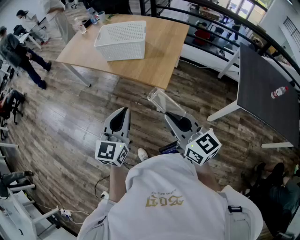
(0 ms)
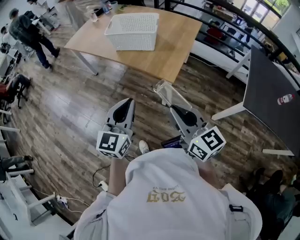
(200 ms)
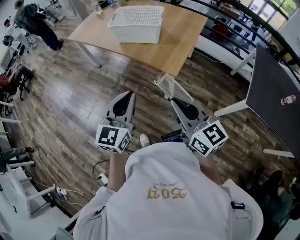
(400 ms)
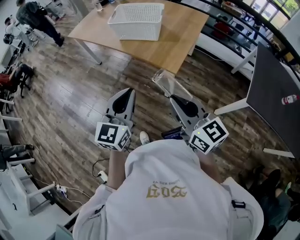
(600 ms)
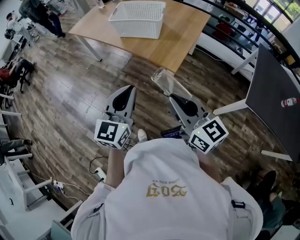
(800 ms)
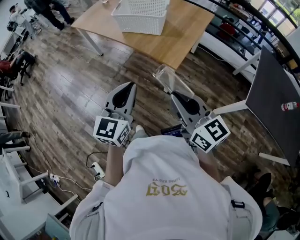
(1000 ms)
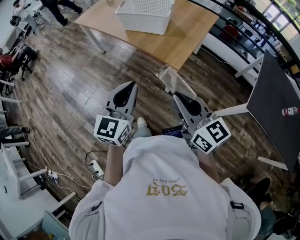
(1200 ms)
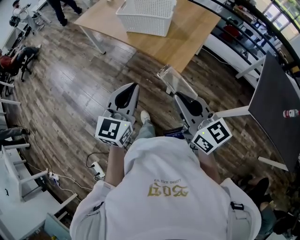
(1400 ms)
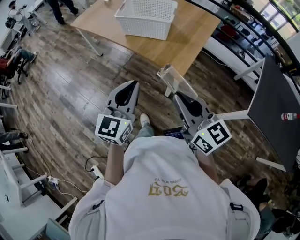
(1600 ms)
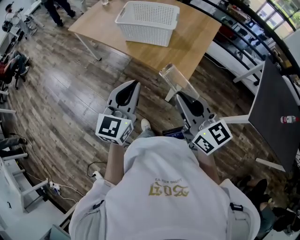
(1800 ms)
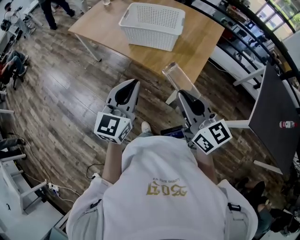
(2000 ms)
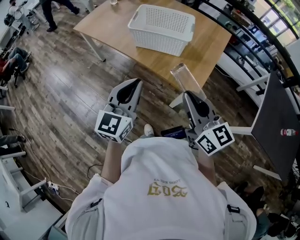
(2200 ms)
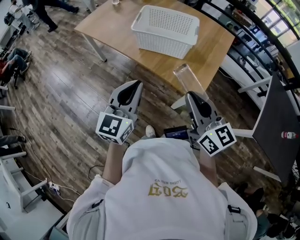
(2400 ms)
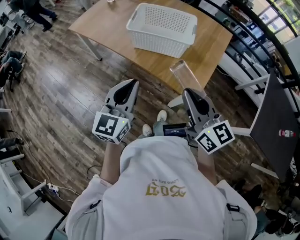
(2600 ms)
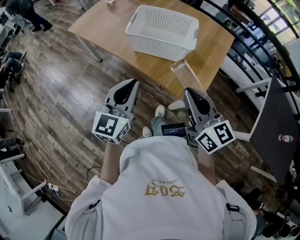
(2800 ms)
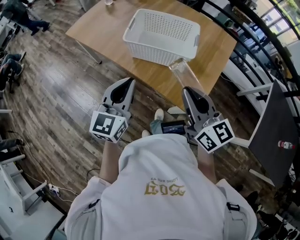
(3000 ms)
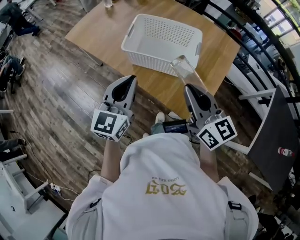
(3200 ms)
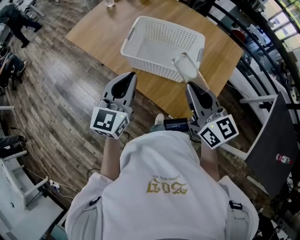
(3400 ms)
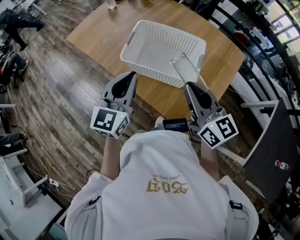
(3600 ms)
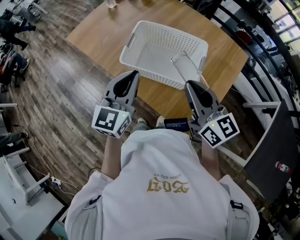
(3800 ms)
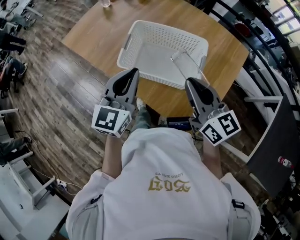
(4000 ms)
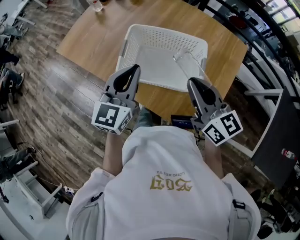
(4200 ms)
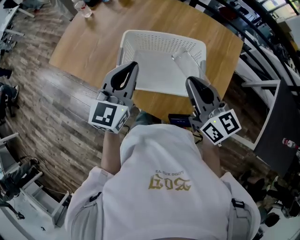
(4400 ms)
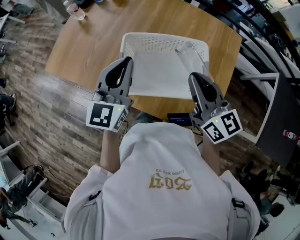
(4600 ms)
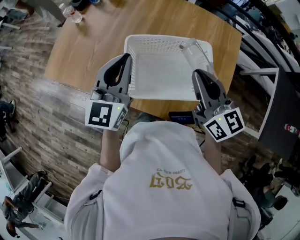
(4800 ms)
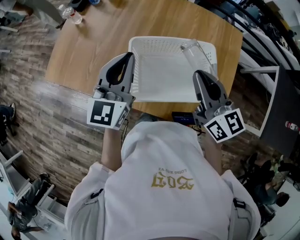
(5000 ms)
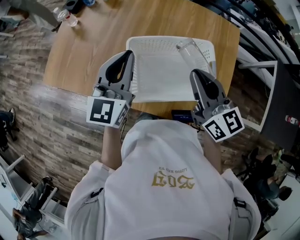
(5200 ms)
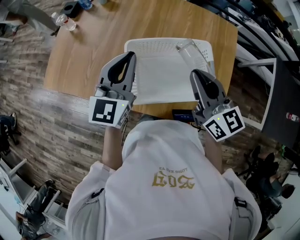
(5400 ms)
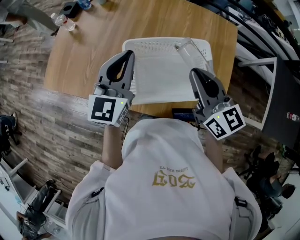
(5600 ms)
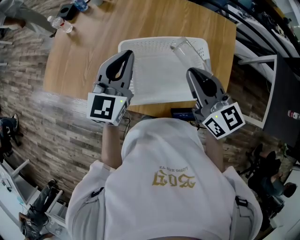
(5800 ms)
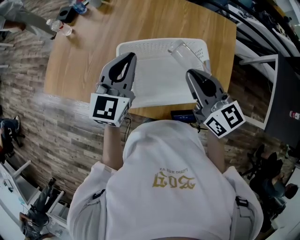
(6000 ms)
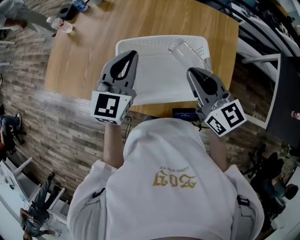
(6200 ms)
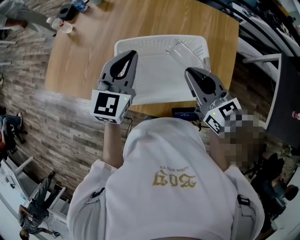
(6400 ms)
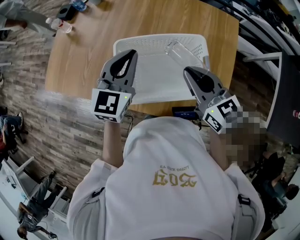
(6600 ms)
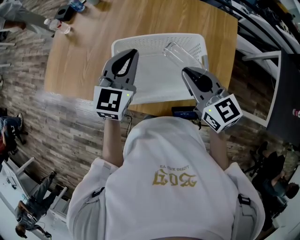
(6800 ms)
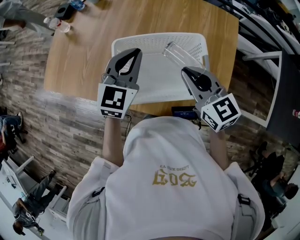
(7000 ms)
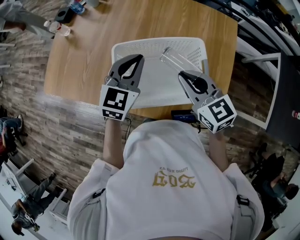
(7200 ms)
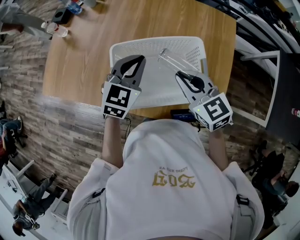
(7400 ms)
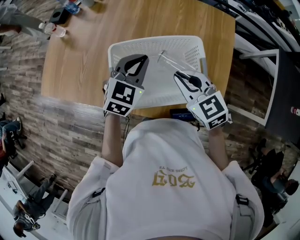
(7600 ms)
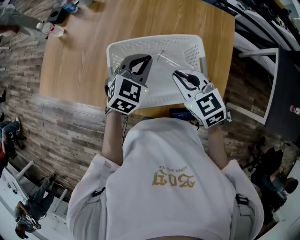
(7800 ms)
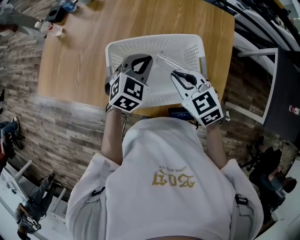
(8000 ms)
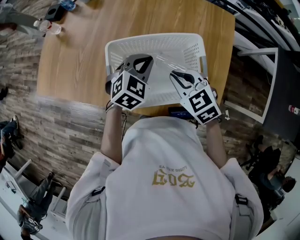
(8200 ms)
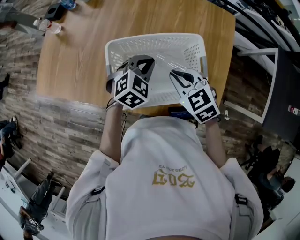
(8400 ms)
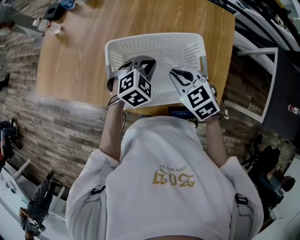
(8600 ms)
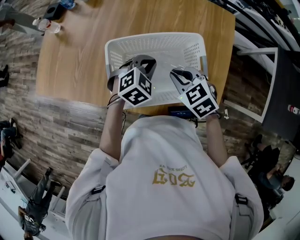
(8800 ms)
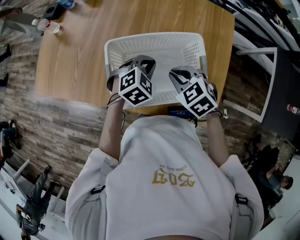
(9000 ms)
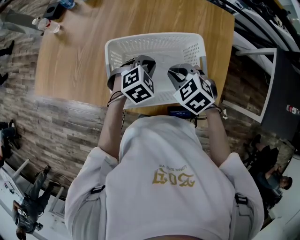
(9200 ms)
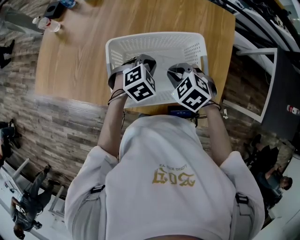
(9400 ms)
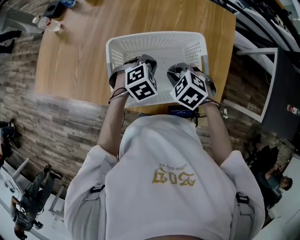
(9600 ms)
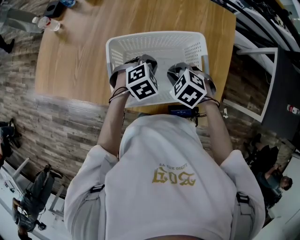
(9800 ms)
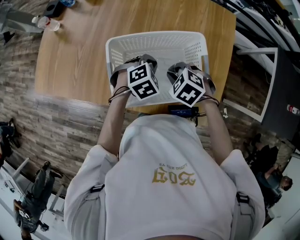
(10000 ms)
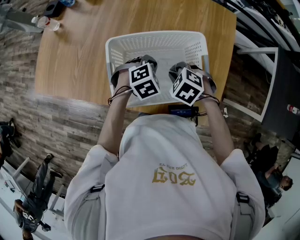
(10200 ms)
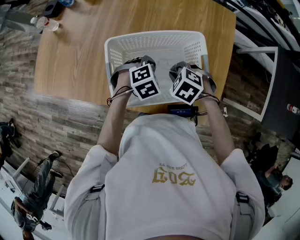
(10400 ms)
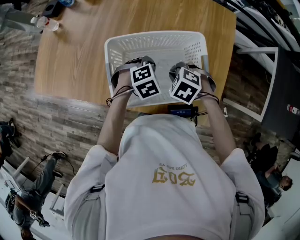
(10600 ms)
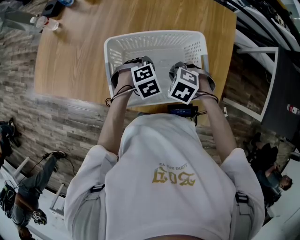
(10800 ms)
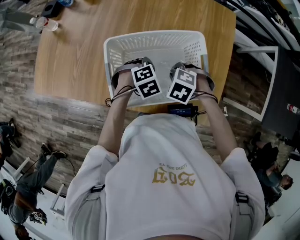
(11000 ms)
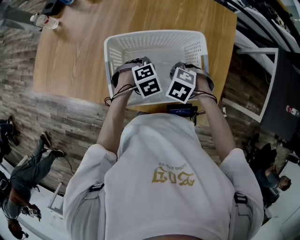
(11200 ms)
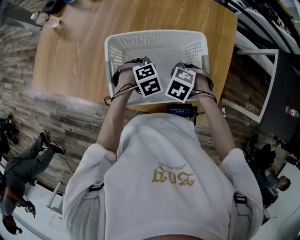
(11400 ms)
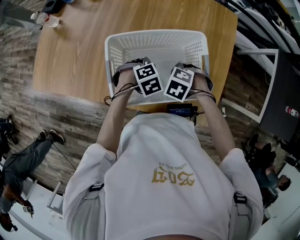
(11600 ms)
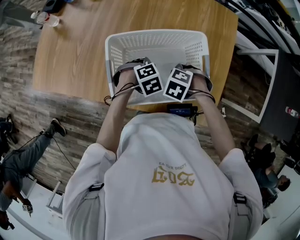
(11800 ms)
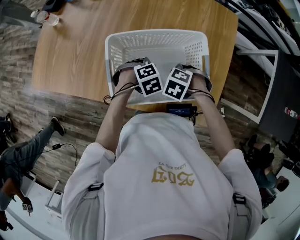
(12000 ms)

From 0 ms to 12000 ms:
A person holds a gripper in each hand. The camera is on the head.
From 0 ms to 1600 ms: Both grippers move forward, some 5 cm.
From 1600 ms to 3000 ms: Both grippers travel together forward, roughly 25 cm.
From 3000 ms to 4400 ms: The grippers both shift forward by roughly 25 cm.
From 4400 ms to 6000 ms: The left gripper travels forward by some 10 cm. The right gripper moves about 5 cm.
From 6000 ms to 7600 ms: The left gripper shifts roughly 10 cm downward and to the right, and changes its angle by some 20 degrees, while the right gripper shifts roughly 10 cm downward, and turns by approximately 30 degrees.
From 7600 ms to 9000 ms: The grippers both shift downward by roughly 10 cm. The right gripper swivels approximately 20 degrees. Meanwhile the left gripper rotates approximately 30 degrees.
From 9000 ms to 10400 ms: The grippers both shift downward by approximately 5 cm. The right gripper changes its angle by approximately 20 degrees.
From 10400 ms to 12000 ms: The right gripper ends up approximately 5 cm from where it was.

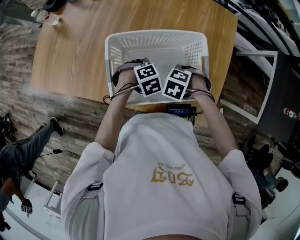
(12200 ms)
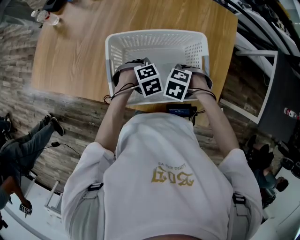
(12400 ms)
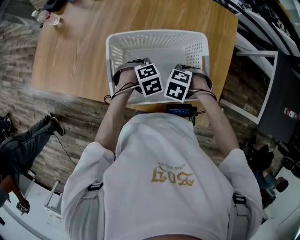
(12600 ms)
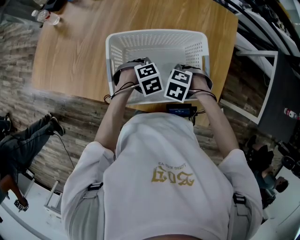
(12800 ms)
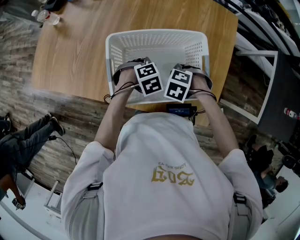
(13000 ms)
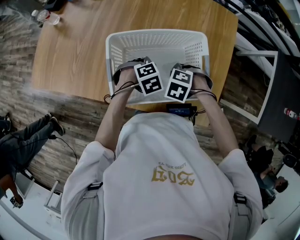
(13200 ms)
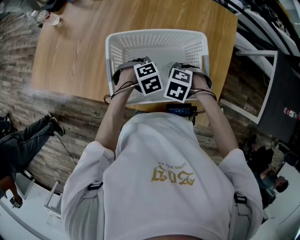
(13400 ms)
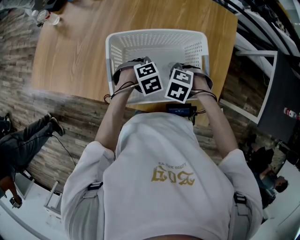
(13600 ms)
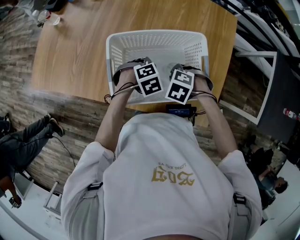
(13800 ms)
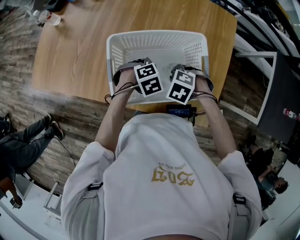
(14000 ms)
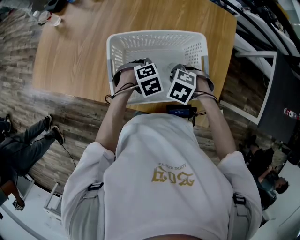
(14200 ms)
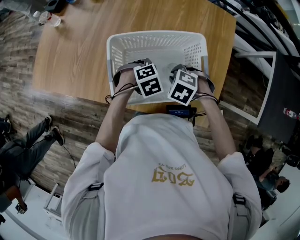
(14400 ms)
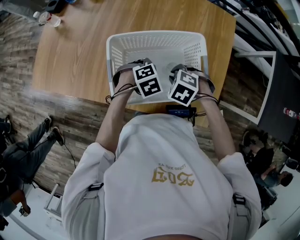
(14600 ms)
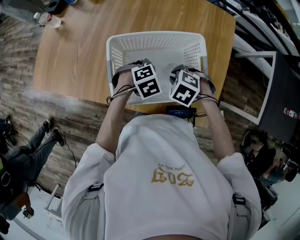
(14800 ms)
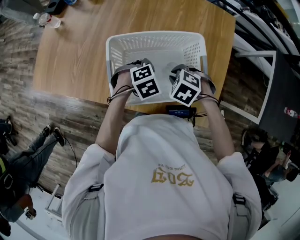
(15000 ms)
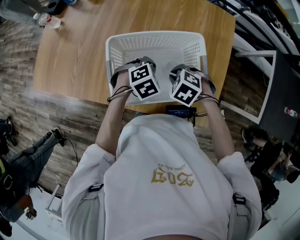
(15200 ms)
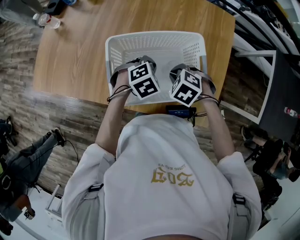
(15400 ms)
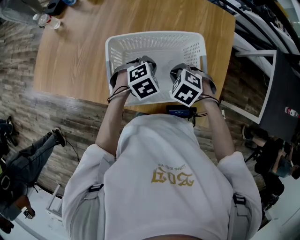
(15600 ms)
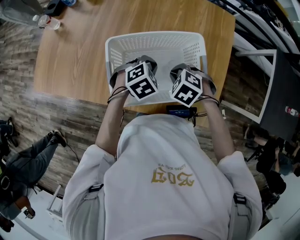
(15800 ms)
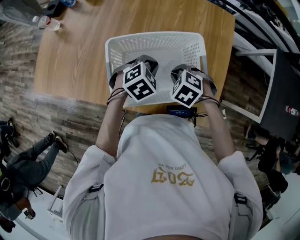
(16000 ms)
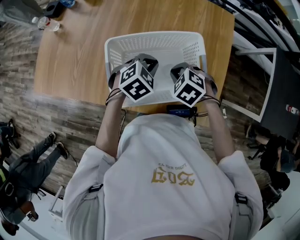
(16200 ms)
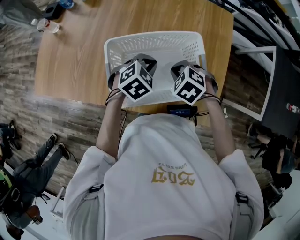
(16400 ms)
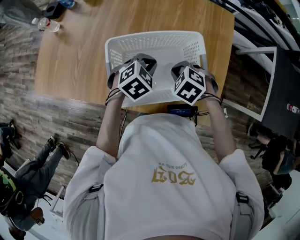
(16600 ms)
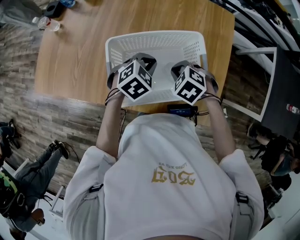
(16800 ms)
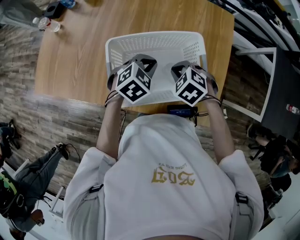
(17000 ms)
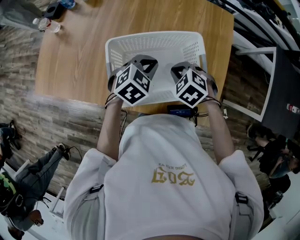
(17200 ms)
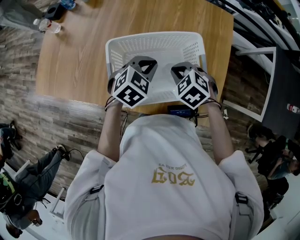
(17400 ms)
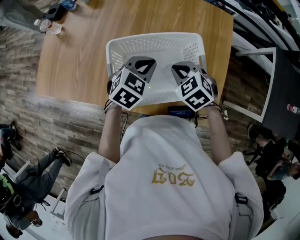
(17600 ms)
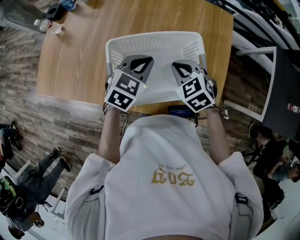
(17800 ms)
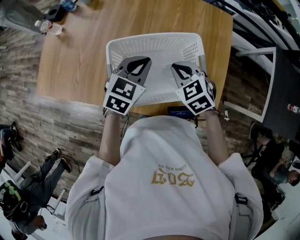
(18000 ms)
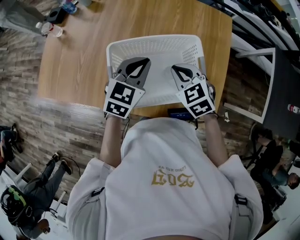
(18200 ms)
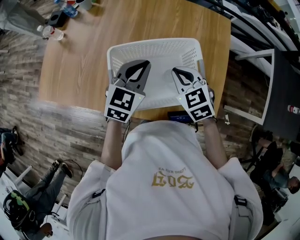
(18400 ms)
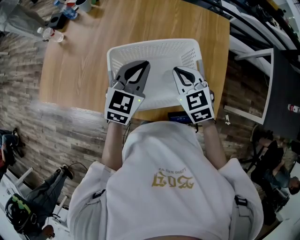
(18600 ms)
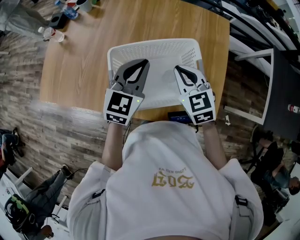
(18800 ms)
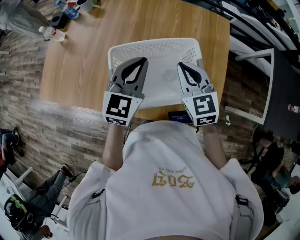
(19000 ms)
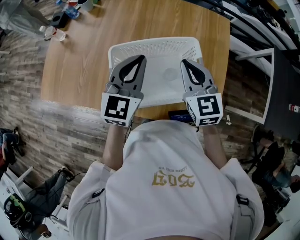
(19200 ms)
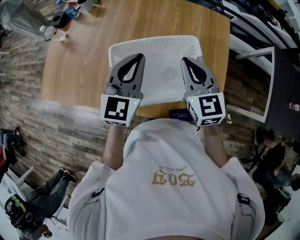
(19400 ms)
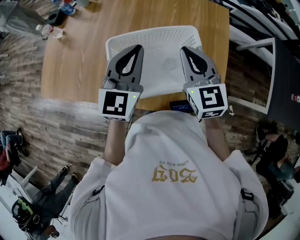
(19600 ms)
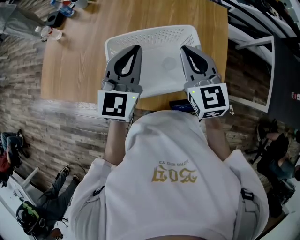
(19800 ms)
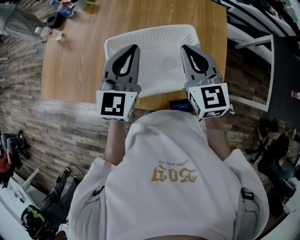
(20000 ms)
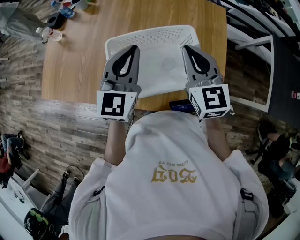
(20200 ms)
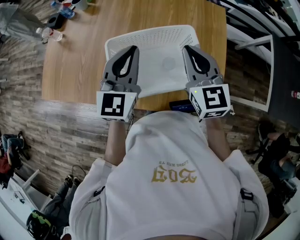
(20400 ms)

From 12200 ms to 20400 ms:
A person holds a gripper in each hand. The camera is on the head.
From 12200 ms to 13800 ms: There are only small adjustments of the grippers.
From 13800 ms to 15400 ms: There are only small adjustments of the grippers.
From 15400 ms to 17200 ms: The left gripper heads upward, covering some 5 cm.
From 17200 ms to 18800 ms: The two grippers go some 10 cm upward. The left gripper rotates approximately 30 degrees, while the right gripper angles its fingers upward, by some 30 degrees.
From 18800 ms to 20400 ms: Both grippers move upward, about 5 cm. The right gripper rotates about 20 degrees.

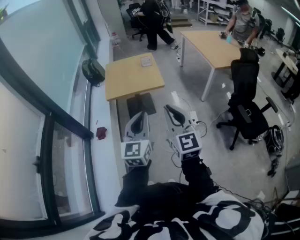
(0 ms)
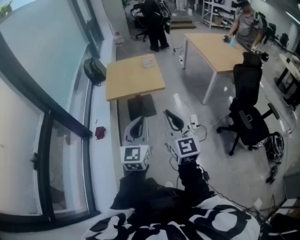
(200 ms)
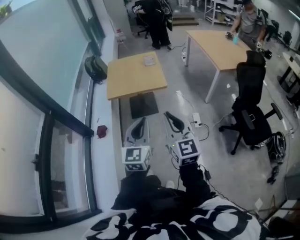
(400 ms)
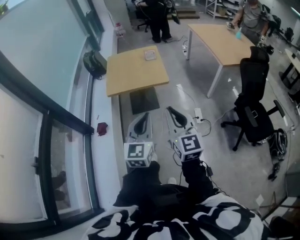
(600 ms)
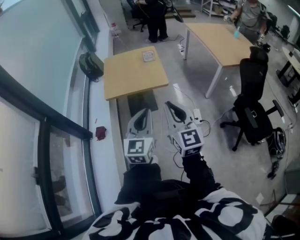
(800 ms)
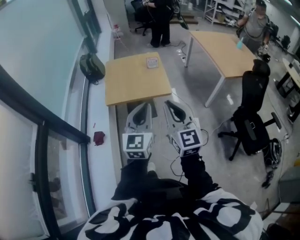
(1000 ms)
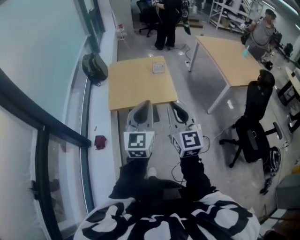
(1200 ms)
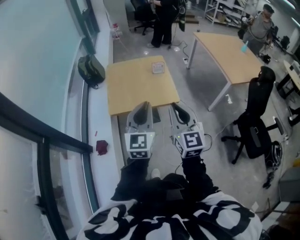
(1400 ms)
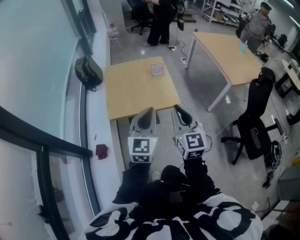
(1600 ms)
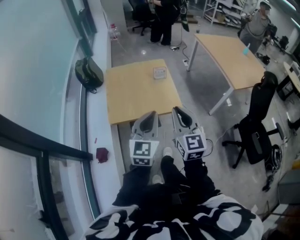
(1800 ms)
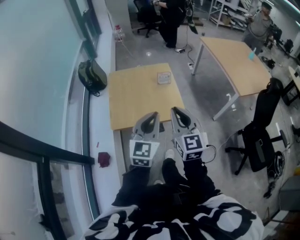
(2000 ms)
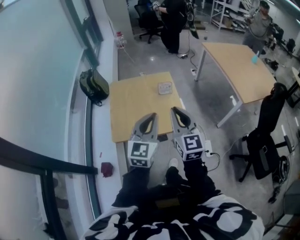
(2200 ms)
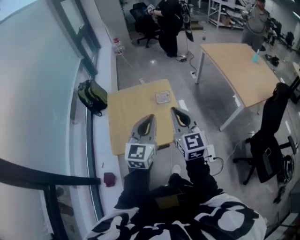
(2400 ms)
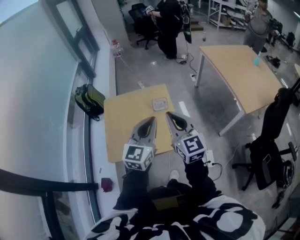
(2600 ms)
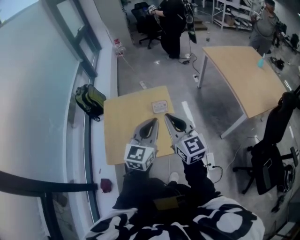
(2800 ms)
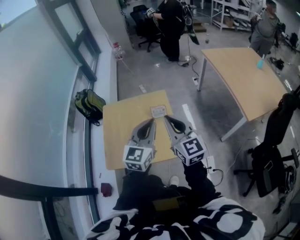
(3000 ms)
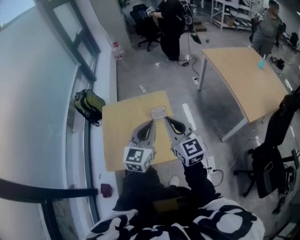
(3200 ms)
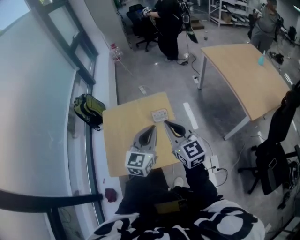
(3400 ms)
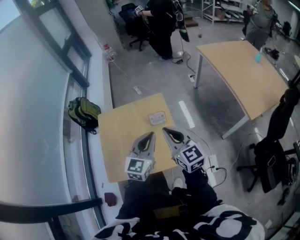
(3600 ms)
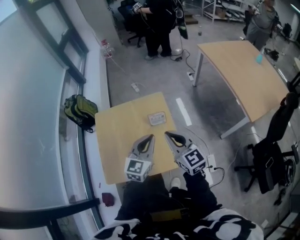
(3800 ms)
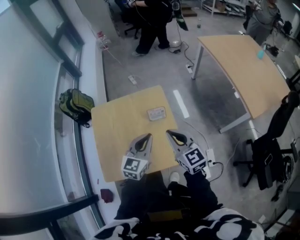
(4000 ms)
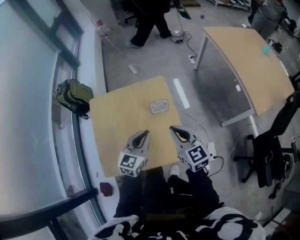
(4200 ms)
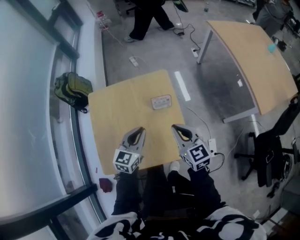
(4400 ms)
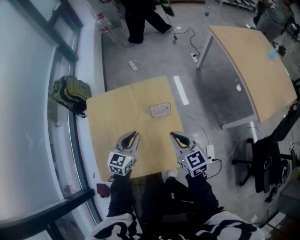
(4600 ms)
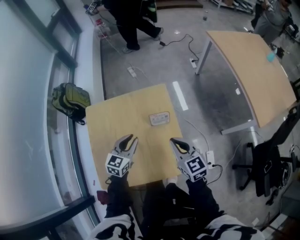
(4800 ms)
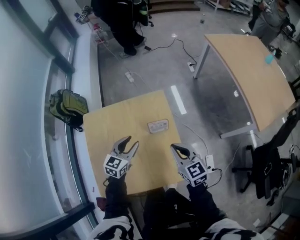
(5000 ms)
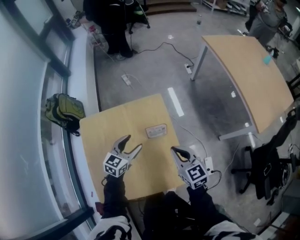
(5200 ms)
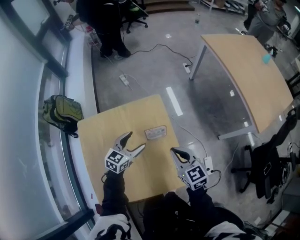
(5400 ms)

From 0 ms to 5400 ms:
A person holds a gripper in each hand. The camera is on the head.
From 0 ms to 1400 ms: The two grippers go roughly 25 cm forward.
From 1400 ms to 2800 ms: The two grippers go roughly 30 cm forward.
From 2800 ms to 4000 ms: The grippers both shift downward and forward by roughly 15 cm.
From 4000 ms to 5400 ms: The left gripper is displaced downward and forward by approximately 20 cm, and opens up. Meanwhile the right gripper is displaced downward and forward by approximately 15 cm.
